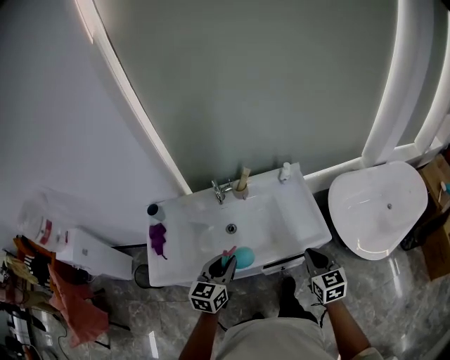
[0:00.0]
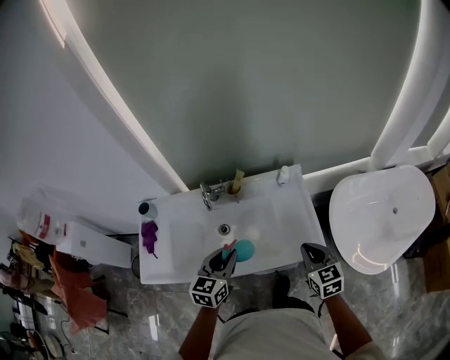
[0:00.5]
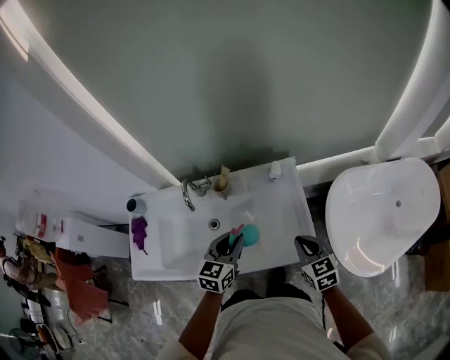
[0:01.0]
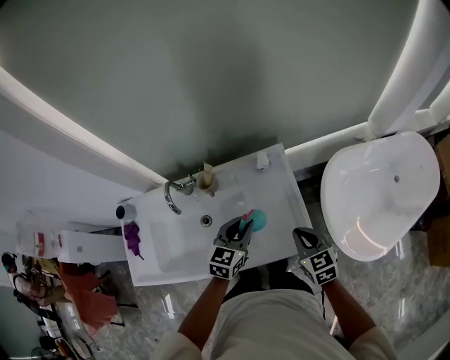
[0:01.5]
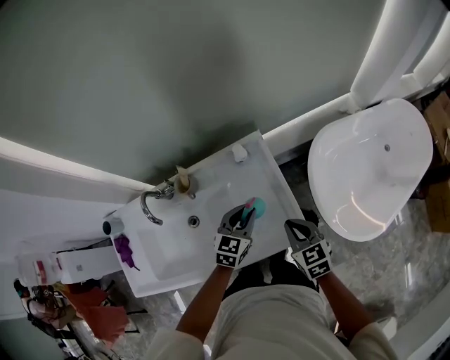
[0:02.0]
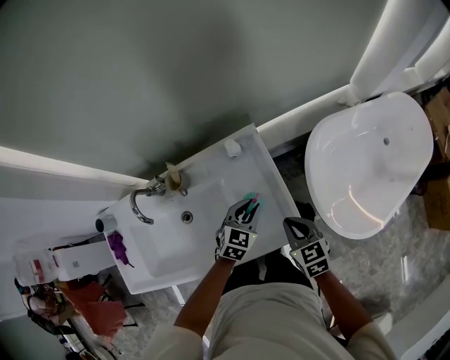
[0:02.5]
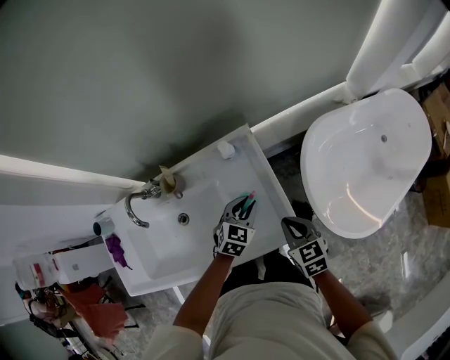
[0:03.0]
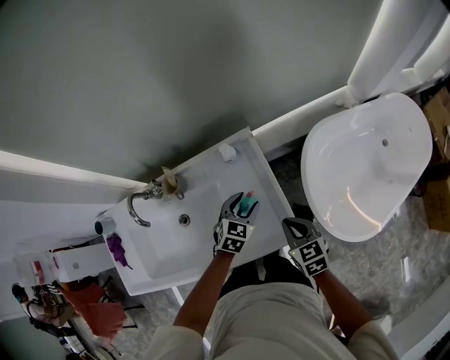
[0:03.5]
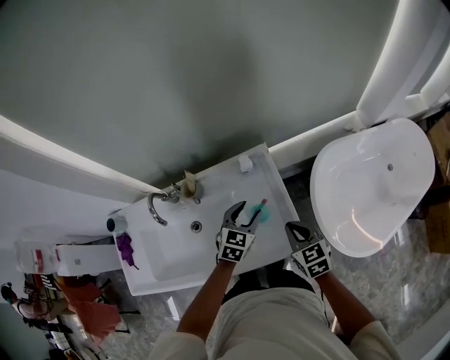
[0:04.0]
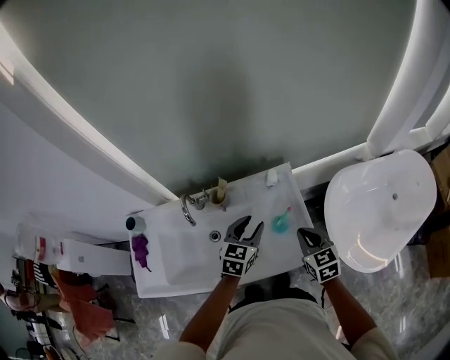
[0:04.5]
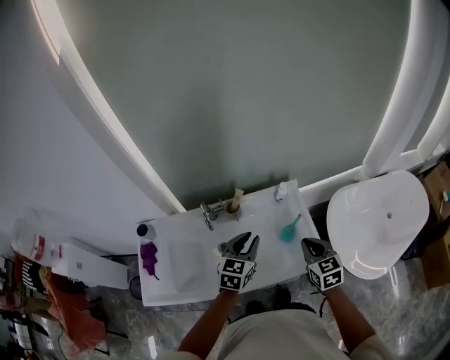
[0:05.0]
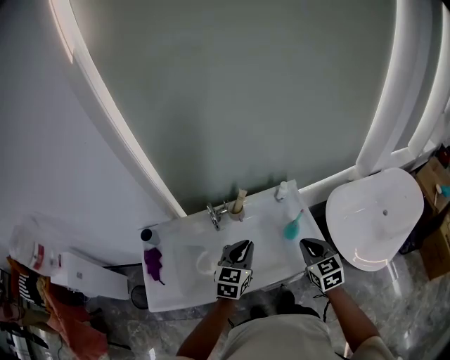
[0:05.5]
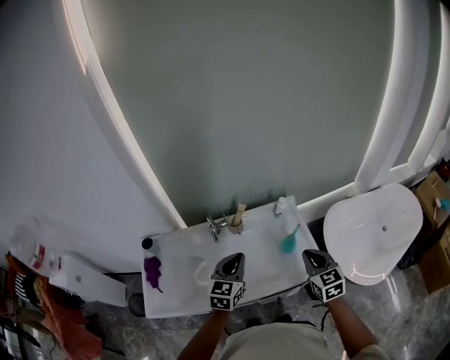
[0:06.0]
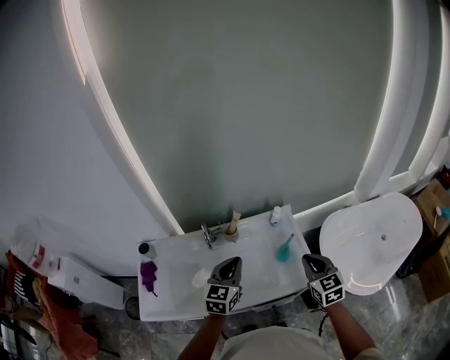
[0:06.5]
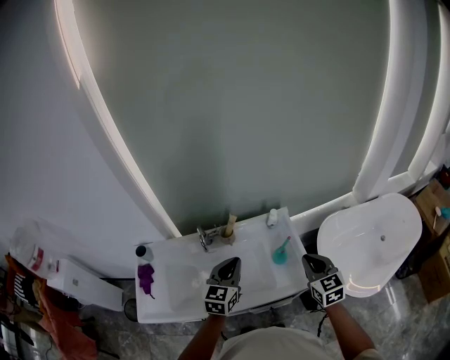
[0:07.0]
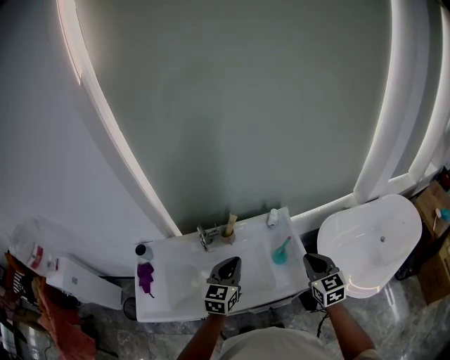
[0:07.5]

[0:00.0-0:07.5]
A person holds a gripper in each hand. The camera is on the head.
0:00.0 to 0:02.0: The right gripper shifts approximately 25 cm forward, downward and to the right. Meanwhile the left gripper heads to the right, forward and downward, covering about 40 cm, and changes its angle by roughly 20 degrees.
0:02.0 to 0:04.0: The left gripper opens up.
0:04.0 to 0:05.5: The right gripper shifts roughly 20 cm upward, to the left and backward. The left gripper shifts about 30 cm to the left, upward and backward, and closes up.
0:05.5 to 0:07.5: The right gripper heads to the right, covering approximately 10 cm.

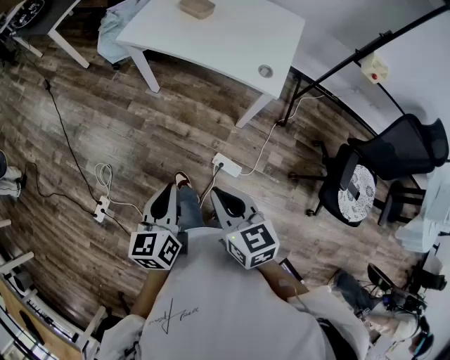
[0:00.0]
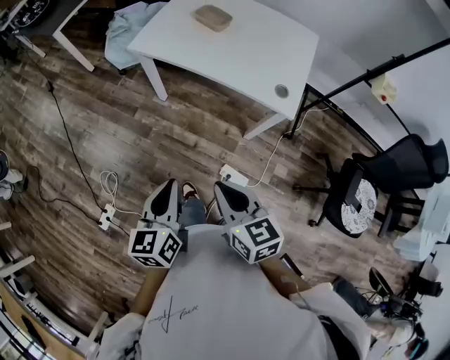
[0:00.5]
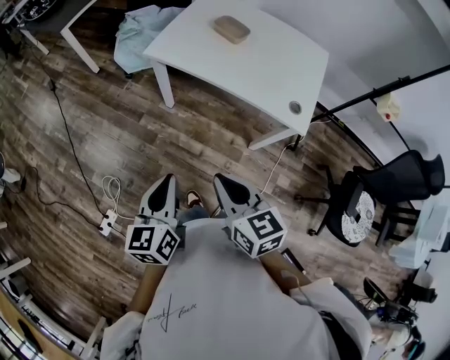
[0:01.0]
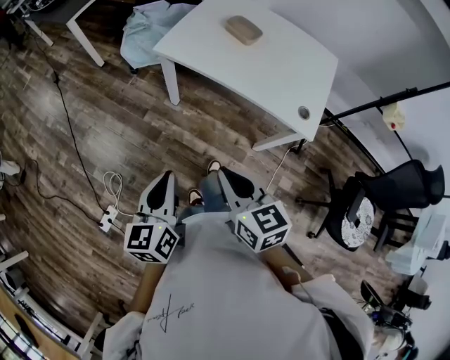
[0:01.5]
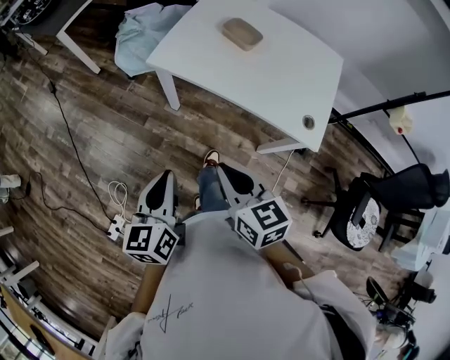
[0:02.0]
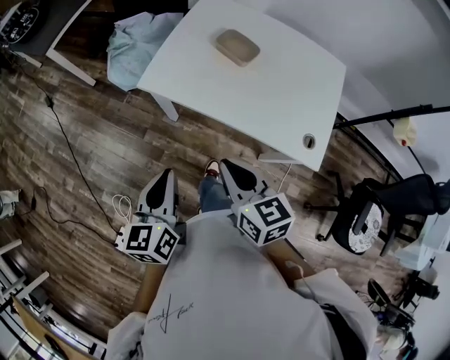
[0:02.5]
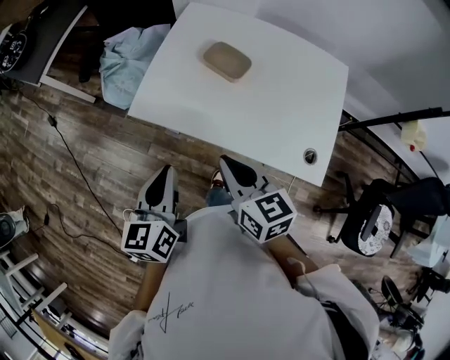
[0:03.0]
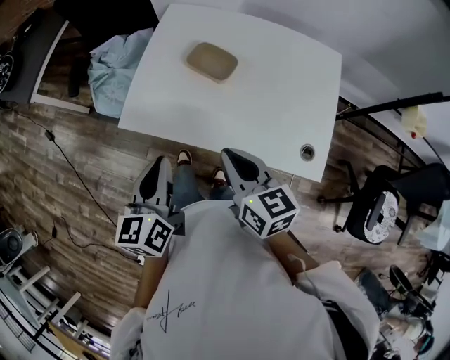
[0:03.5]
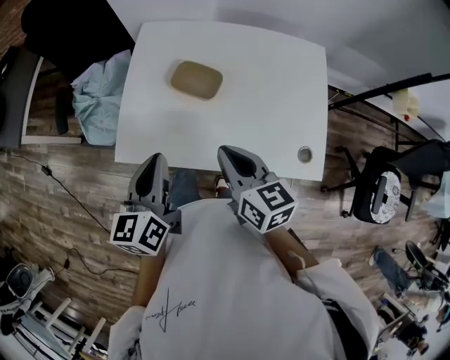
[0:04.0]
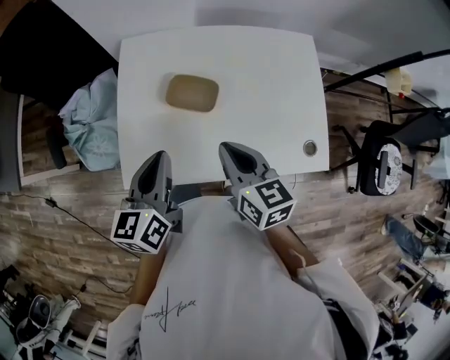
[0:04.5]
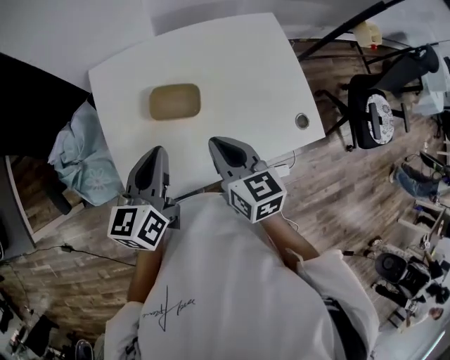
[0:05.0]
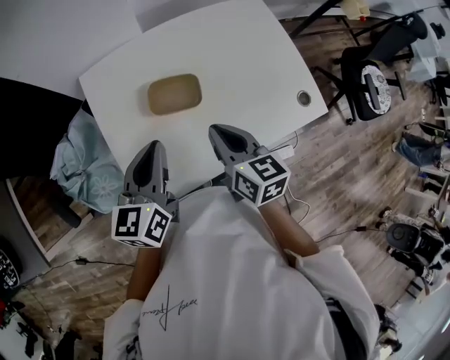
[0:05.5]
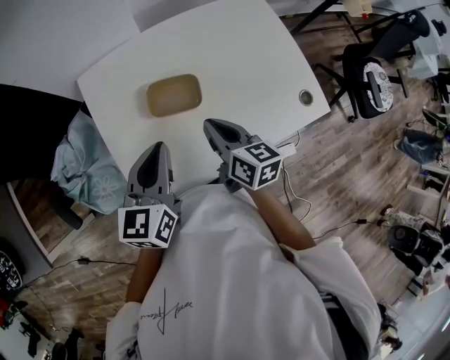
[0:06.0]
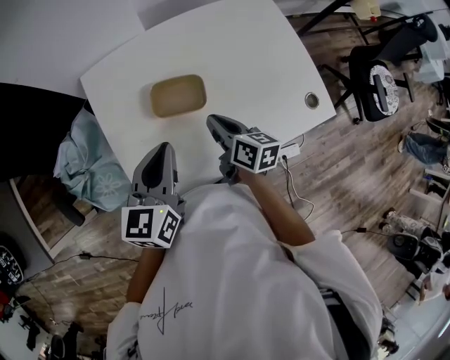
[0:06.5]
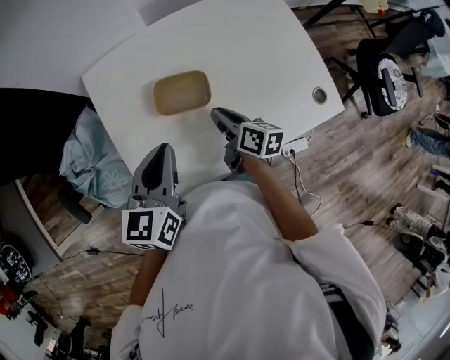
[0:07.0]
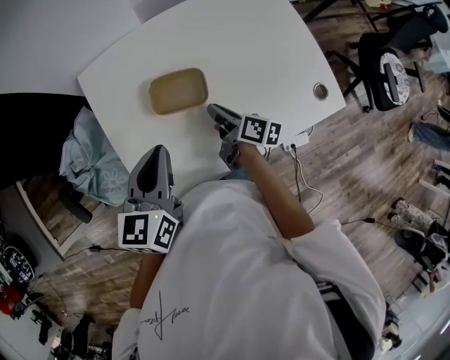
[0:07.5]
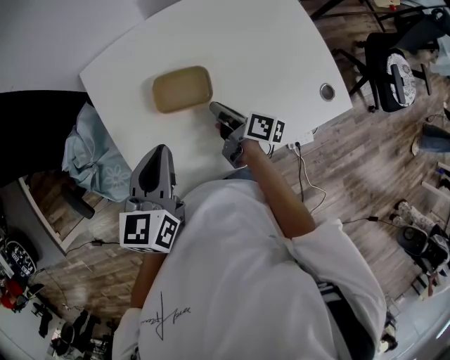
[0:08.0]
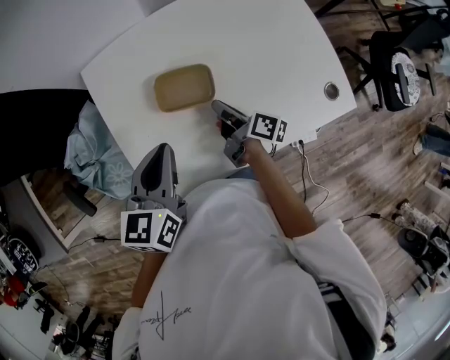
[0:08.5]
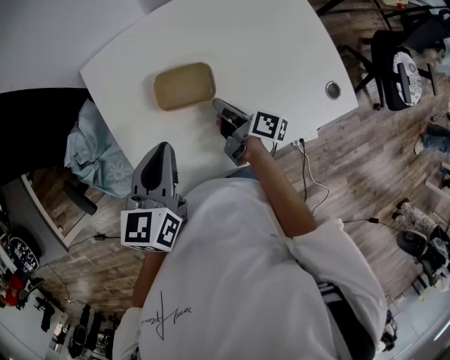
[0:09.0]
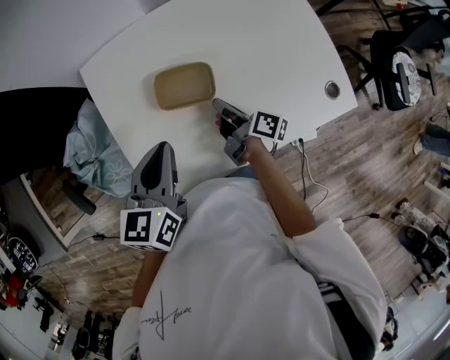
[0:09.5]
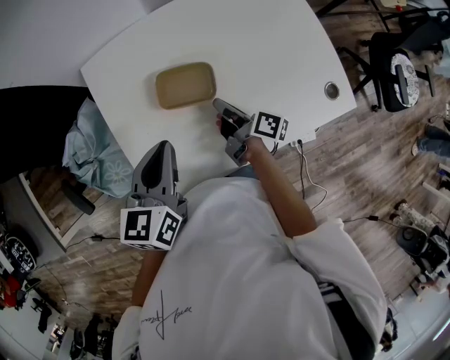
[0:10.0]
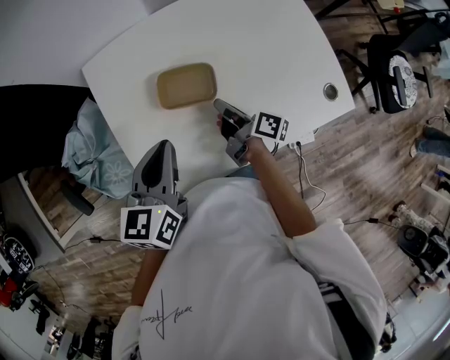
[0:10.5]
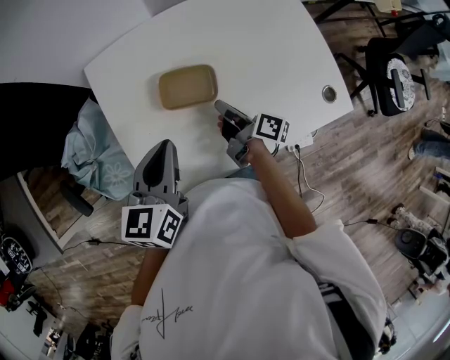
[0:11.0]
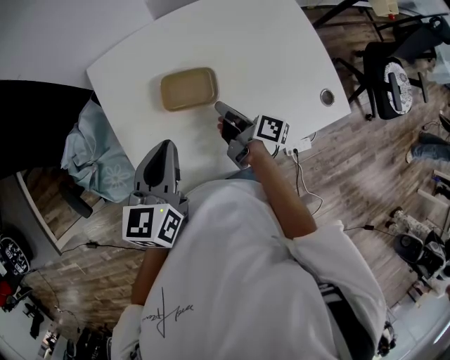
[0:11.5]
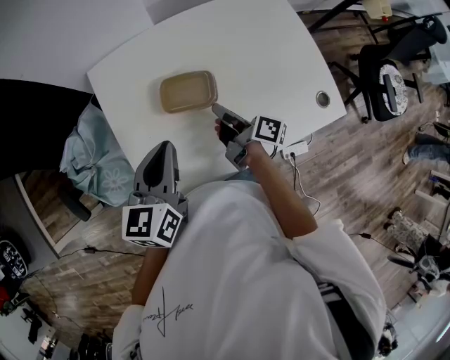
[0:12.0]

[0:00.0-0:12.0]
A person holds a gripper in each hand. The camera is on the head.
0:00.0 to 0:02.0: The left gripper shifts about 30 cm forward and to the left. The right gripper shifts some 30 cm forward.
0:02.0 to 0:04.0: The right gripper travels forward and to the right by approximately 30 cm, and changes its angle by approximately 20 degrees, while the left gripper moves forward, approximately 35 cm.
0:04.0 to 0:06.0: The left gripper shifts by some 15 cm, and rotates roughly 40 degrees; the right gripper shifts by roughly 15 cm, and swivels some 30 degrees.
0:06.0 to 0:08.0: The right gripper shifts about 10 cm downward, and changes its angle by some 40 degrees.
0:08.0 to 0:12.0: The grippers make only small movements.

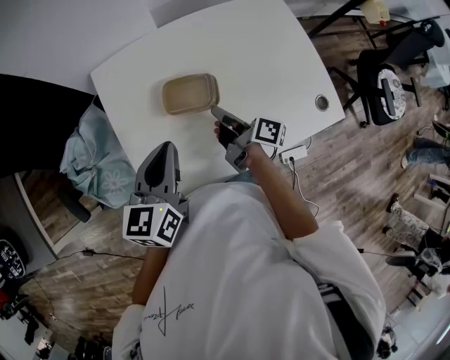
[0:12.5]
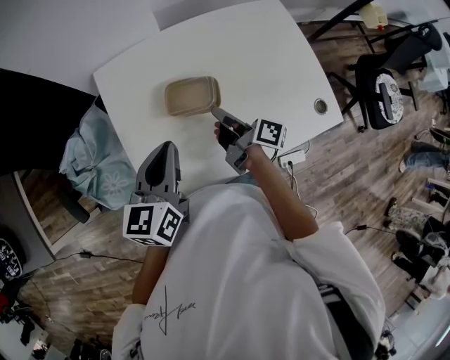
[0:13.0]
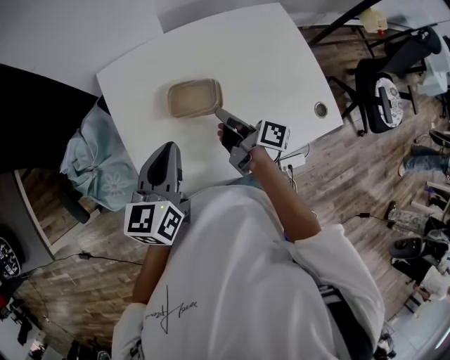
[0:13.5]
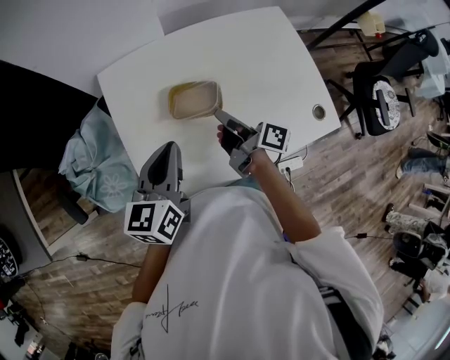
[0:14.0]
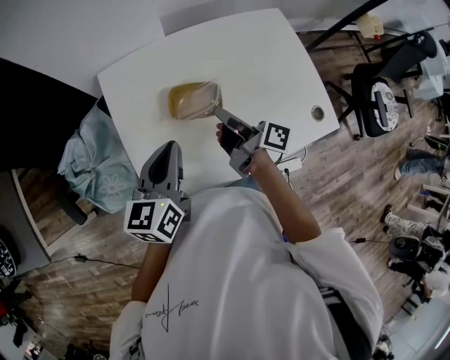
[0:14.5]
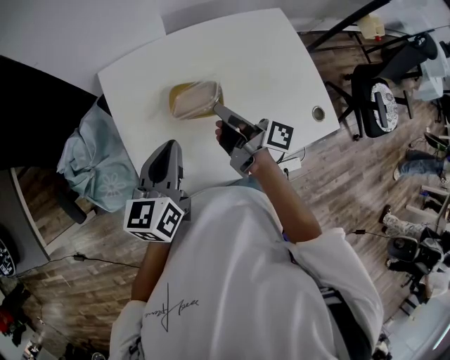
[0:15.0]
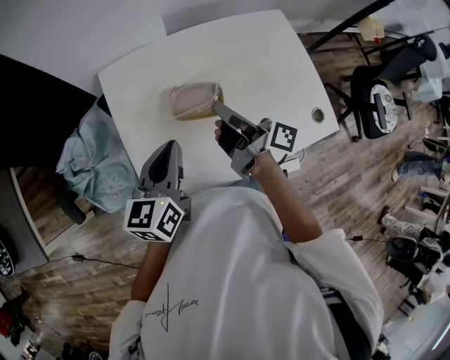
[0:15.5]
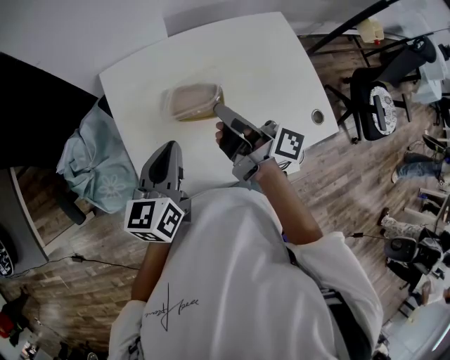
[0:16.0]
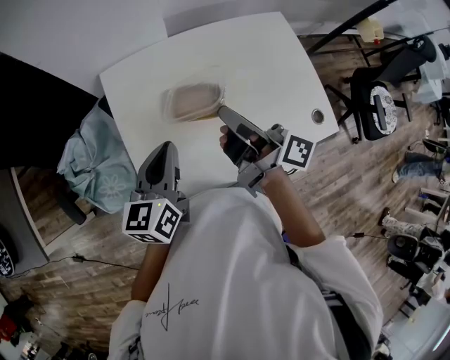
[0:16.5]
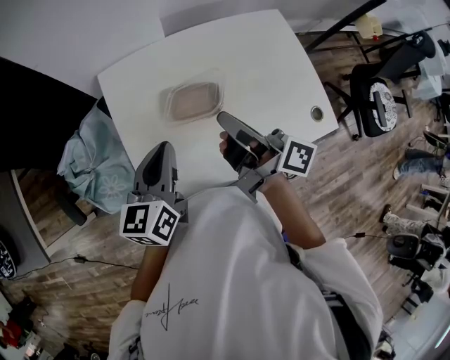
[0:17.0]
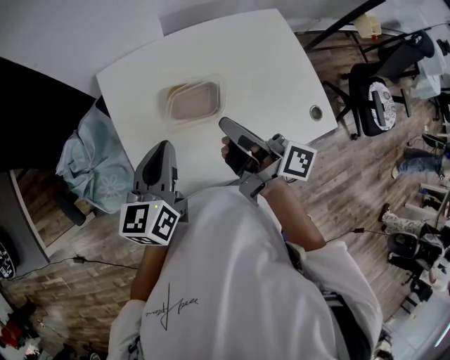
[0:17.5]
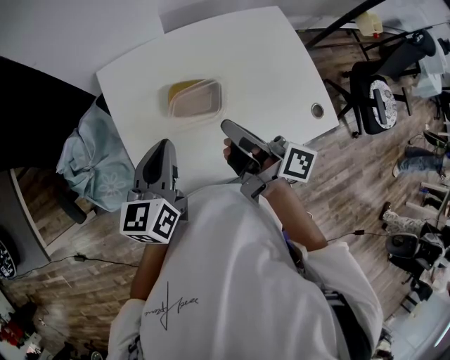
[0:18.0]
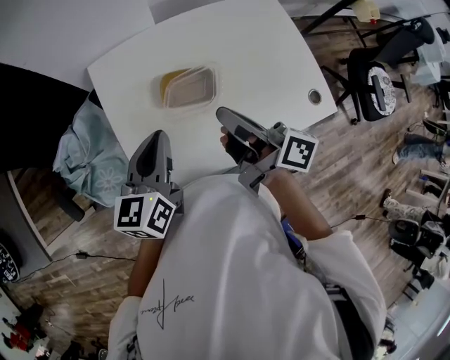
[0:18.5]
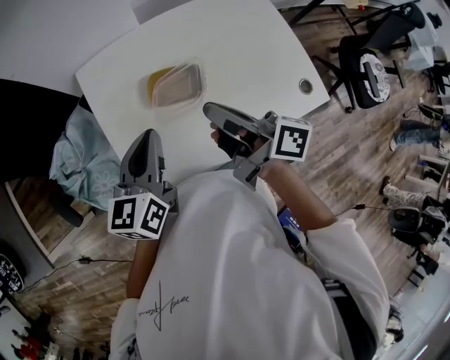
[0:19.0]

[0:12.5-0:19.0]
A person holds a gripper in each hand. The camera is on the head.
0:12.5 to 0:14.5: The right gripper goes some 5 cm upward.
0:14.5 to 0:17.0: The right gripper goes some 10 cm upward.
0:17.0 to 0:19.0: There are only small adjustments of the grippers.

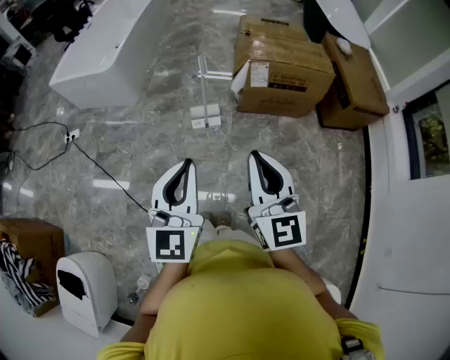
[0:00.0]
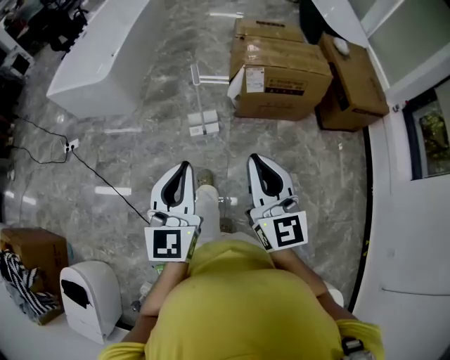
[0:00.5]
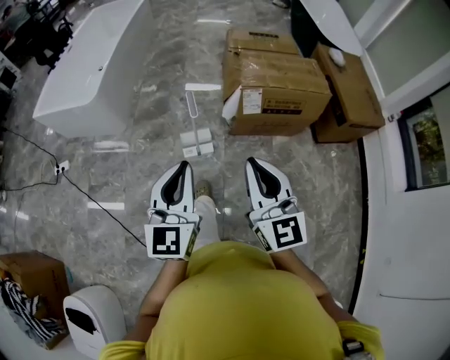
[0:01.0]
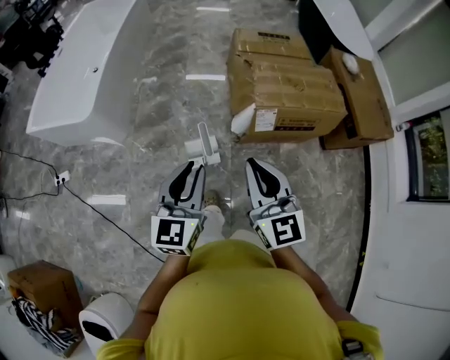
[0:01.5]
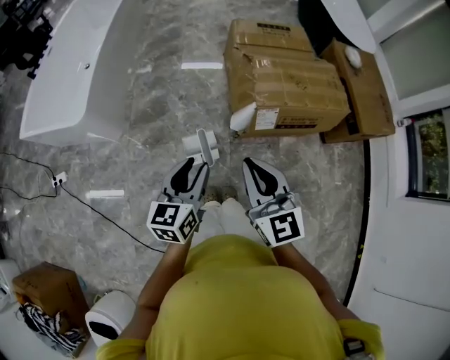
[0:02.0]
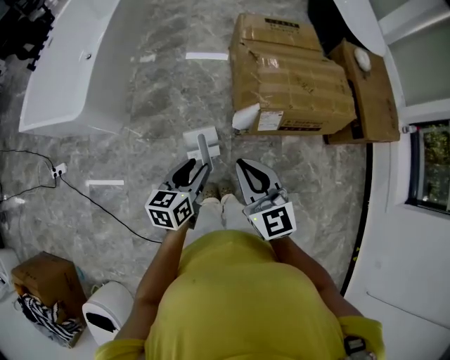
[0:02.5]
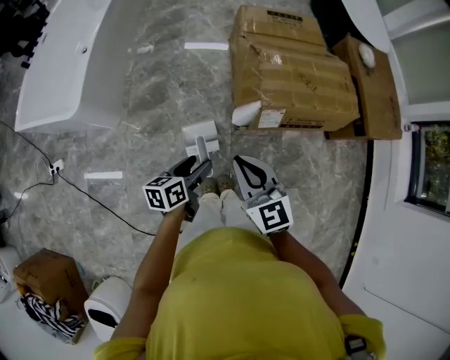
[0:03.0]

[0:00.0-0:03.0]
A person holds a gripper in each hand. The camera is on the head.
0:00.0 to 0:01.5: Both grippers travel together forward, approximately 35 cm.
0:01.5 to 0:03.0: The left gripper moves downward and forward, some 25 cm, rotates some 50 degrees, and opens up. The right gripper heads forward and downward, covering approximately 15 cm.
